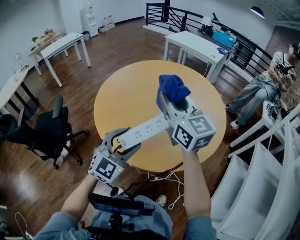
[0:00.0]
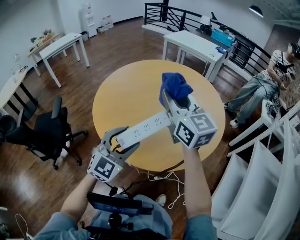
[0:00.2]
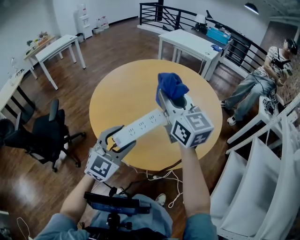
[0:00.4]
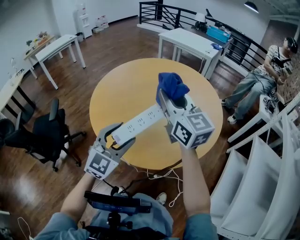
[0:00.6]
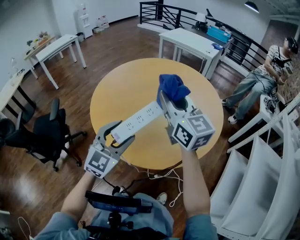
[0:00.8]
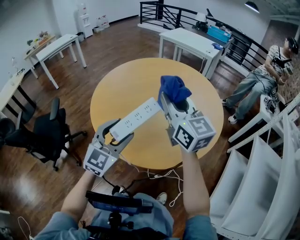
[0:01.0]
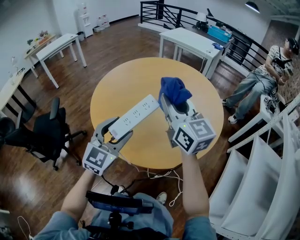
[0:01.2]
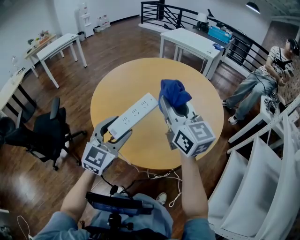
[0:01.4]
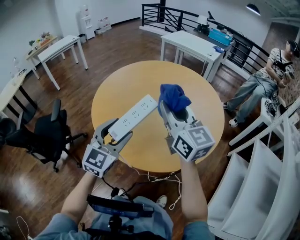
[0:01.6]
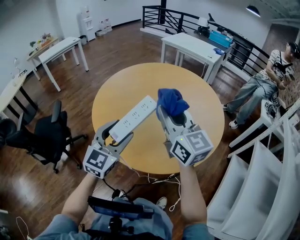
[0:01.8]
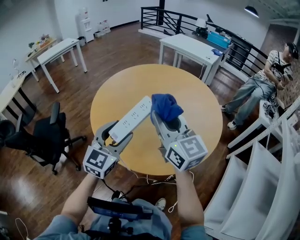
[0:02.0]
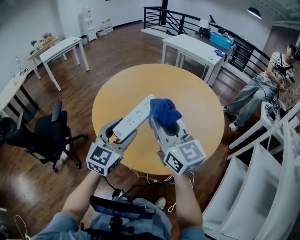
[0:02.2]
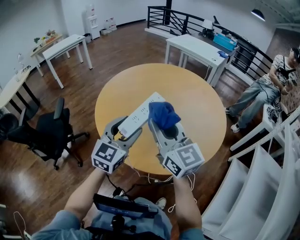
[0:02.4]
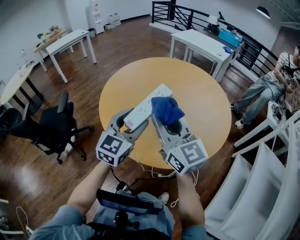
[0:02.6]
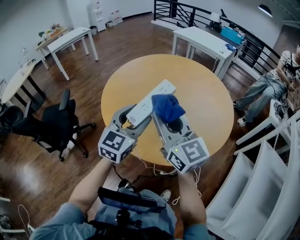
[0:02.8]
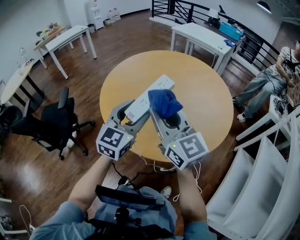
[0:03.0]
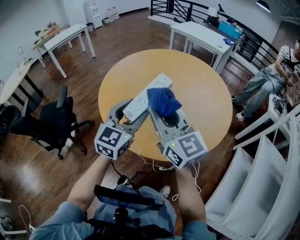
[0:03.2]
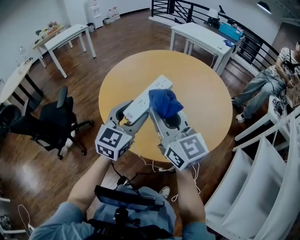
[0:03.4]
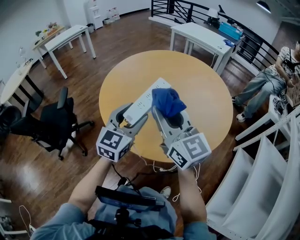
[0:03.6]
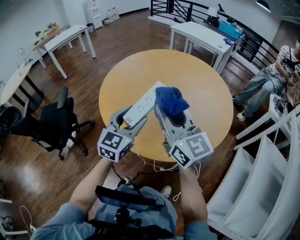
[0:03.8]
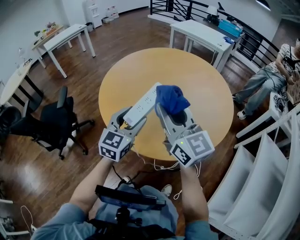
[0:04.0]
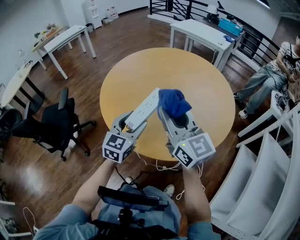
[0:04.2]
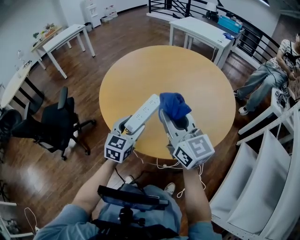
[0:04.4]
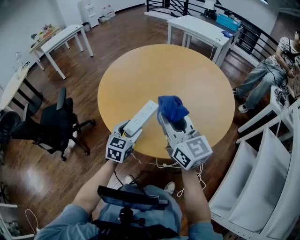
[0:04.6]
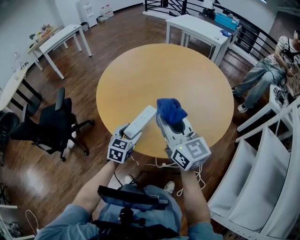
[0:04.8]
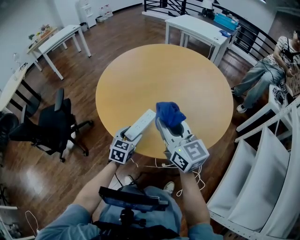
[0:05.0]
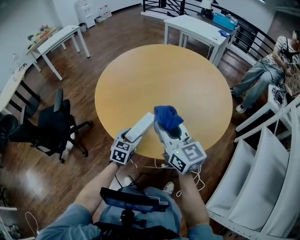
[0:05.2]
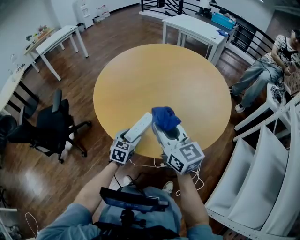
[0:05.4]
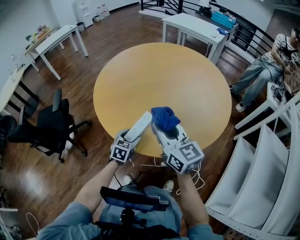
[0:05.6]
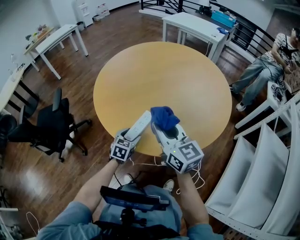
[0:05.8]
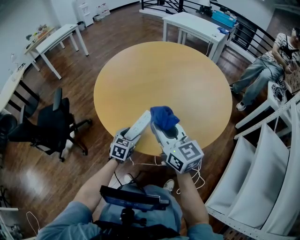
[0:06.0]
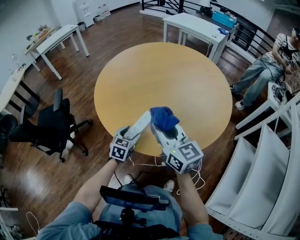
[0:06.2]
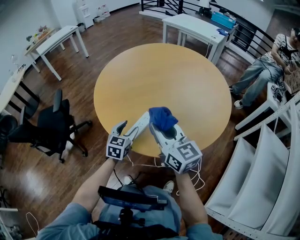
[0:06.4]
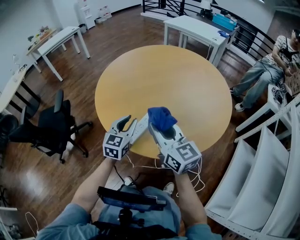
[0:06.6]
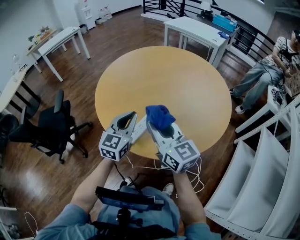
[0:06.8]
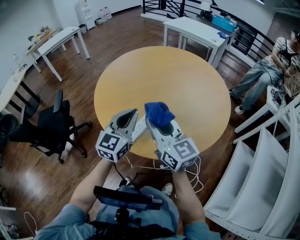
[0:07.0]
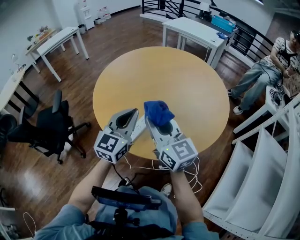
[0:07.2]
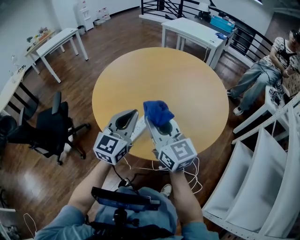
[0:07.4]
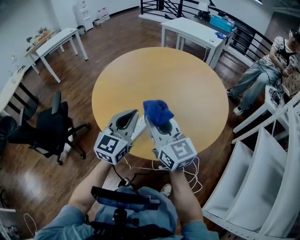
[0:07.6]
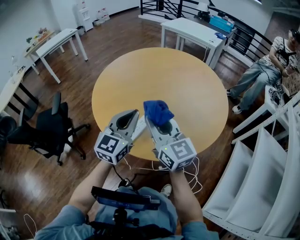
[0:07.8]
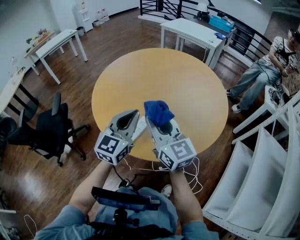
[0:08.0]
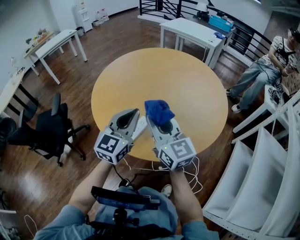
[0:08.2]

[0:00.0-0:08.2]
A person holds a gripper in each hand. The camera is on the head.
0:00.0 to 0:01.6: There are only small adjustments of the grippers.
0:01.6 to 0:03.2: The right gripper is displaced to the left and backward by about 10 cm.
0:03.2 to 0:05.0: The right gripper shifts roughly 10 cm downward. Meanwhile the left gripper moves downward, approximately 25 cm, and rotates roughly 30 degrees.
0:05.0 to 0:06.6: The left gripper moves upward, about 10 cm, and closes.
0:06.6 to 0:08.2: The left gripper moves upward and to the right, approximately 15 cm, and closes its fingers.

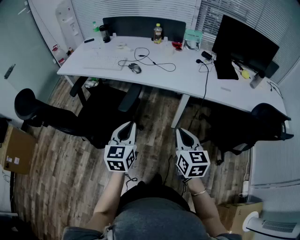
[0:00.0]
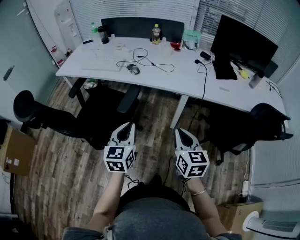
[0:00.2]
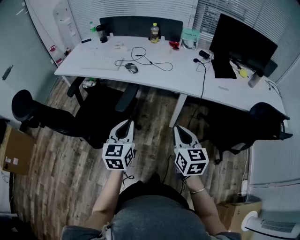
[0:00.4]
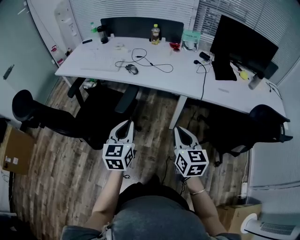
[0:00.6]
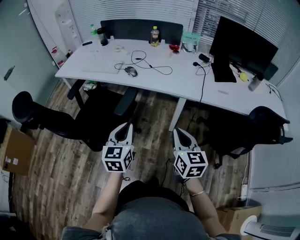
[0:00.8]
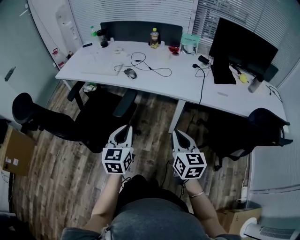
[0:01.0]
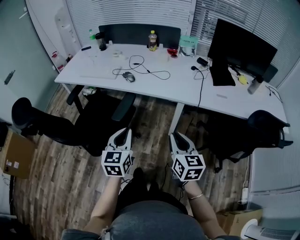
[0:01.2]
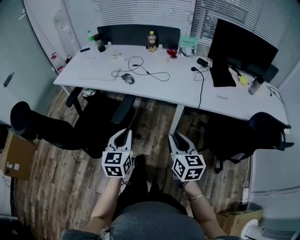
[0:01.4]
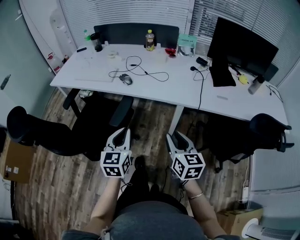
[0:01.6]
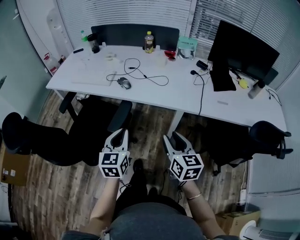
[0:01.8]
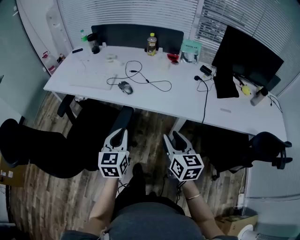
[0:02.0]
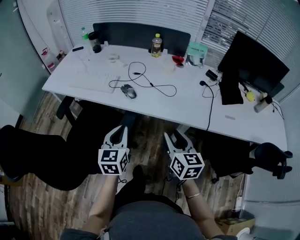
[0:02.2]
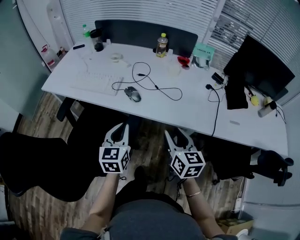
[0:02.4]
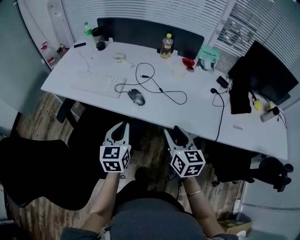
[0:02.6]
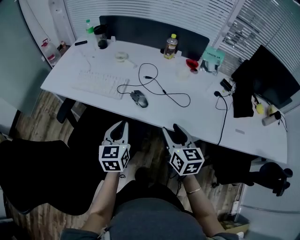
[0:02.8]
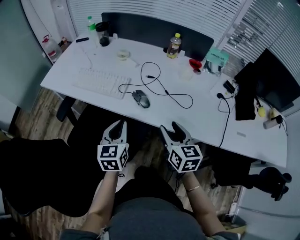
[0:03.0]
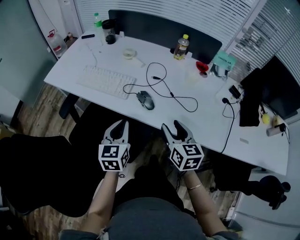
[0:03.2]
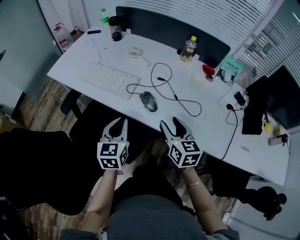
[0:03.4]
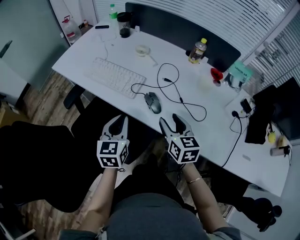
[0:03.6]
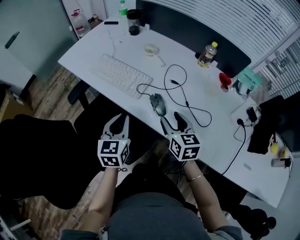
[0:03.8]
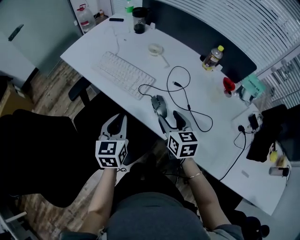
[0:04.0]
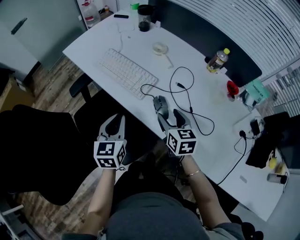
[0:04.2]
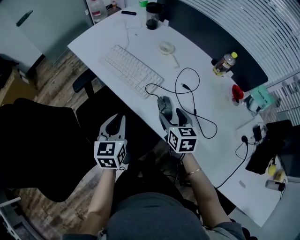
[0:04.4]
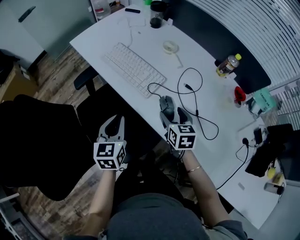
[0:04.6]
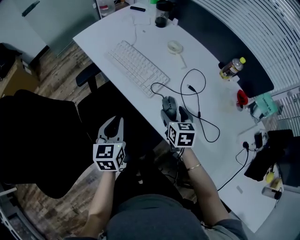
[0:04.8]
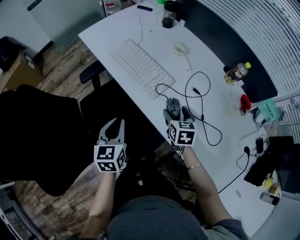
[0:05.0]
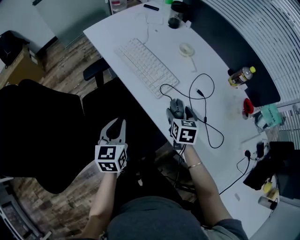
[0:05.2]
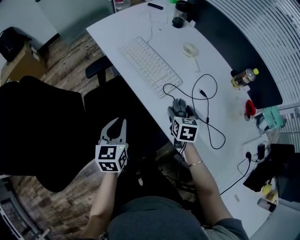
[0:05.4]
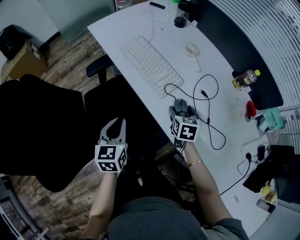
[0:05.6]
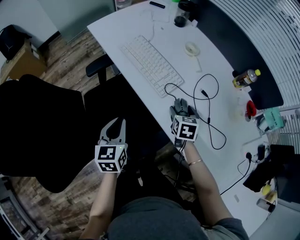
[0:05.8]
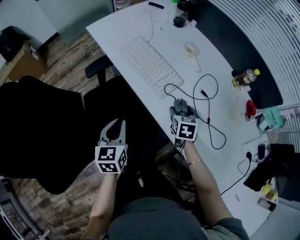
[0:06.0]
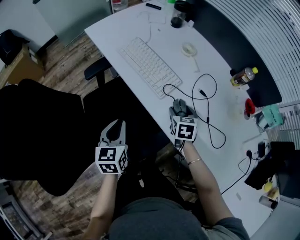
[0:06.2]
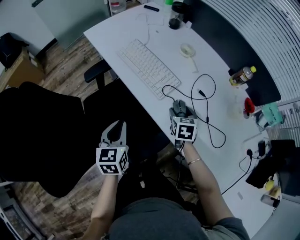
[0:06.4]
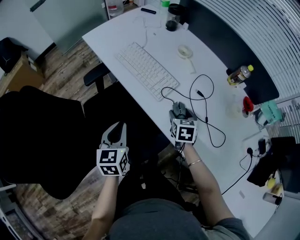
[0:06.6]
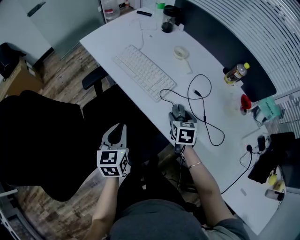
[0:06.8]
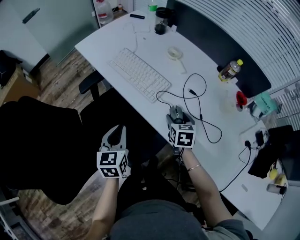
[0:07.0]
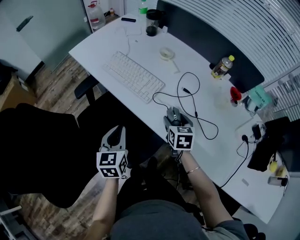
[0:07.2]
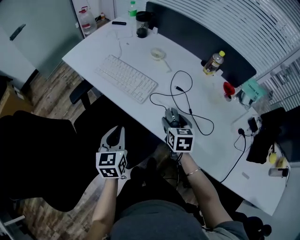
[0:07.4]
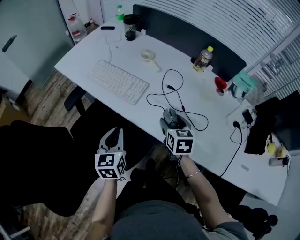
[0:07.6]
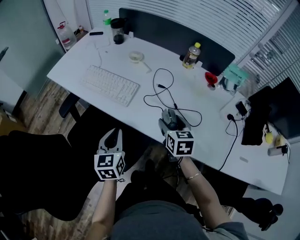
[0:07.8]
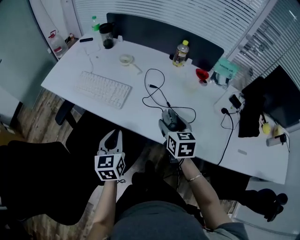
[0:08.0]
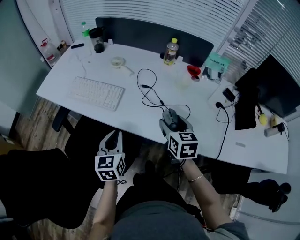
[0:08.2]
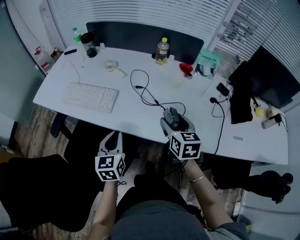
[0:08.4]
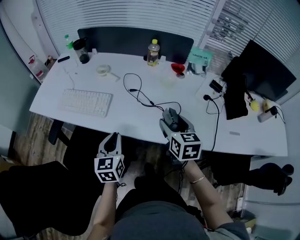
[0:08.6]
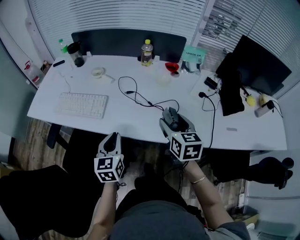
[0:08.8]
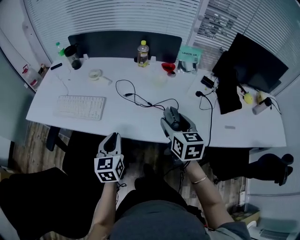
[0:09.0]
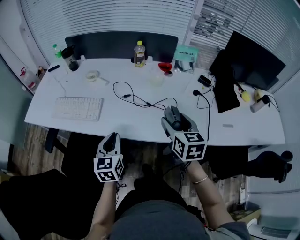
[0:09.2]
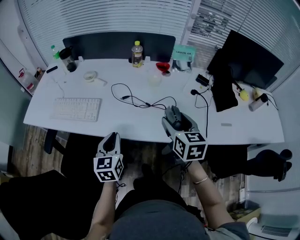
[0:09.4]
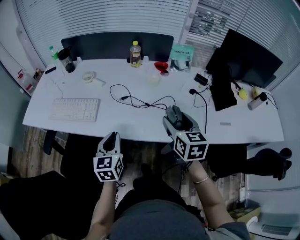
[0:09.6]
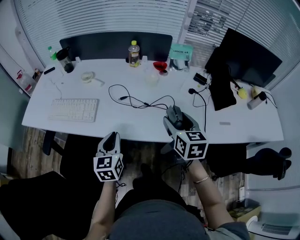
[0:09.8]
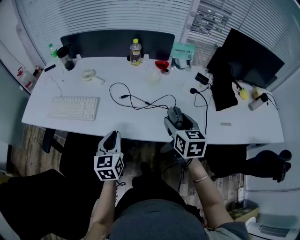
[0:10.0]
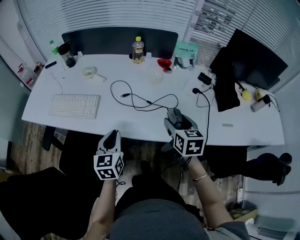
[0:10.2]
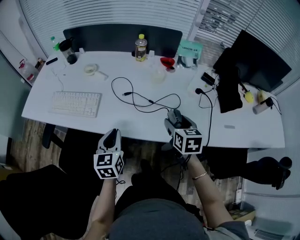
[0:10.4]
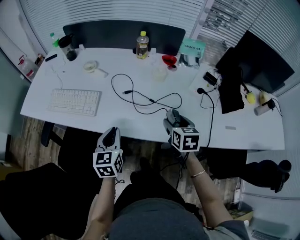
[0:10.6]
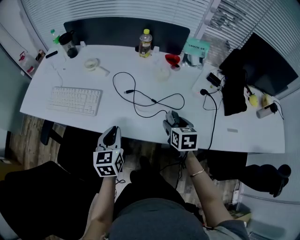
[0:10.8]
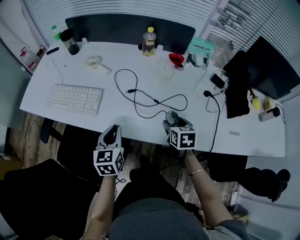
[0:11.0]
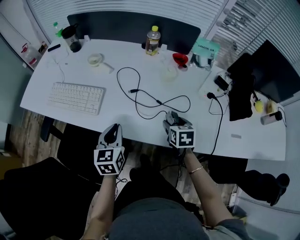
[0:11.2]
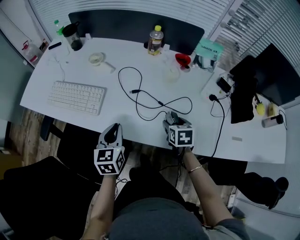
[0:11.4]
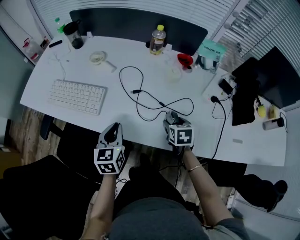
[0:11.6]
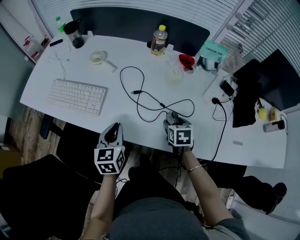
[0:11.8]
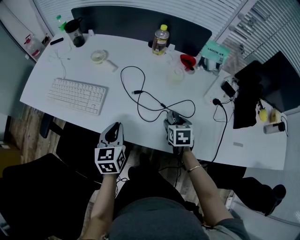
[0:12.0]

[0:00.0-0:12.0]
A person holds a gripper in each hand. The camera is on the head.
0:00.0 to 0:01.6: The grippers both shift forward by approximately 5 cm. The right gripper opens up.
0:01.6 to 0:03.0: Both grippers travel together forward and to the left, roughly 30 cm.
0:03.0 to 0:04.4: The left gripper shifts approximately 10 cm to the left and forward, and rotates some 20 degrees. The right gripper heads forward and downward, covering roughly 20 cm, and rotates roughly 30 degrees.
0:04.4 to 0:06.0: The right gripper heads downward and forward, covering some 10 cm, while the left gripper heads to the left, covering roughly 5 cm.
0:06.0 to 0:07.6: The left gripper goes approximately 5 cm to the right; the right gripper heads backward and upward, covering about 10 cm.
0:07.6 to 0:09.0: The right gripper heads to the right, upward and backward, covering some 20 cm, and changes its angle by about 20 degrees, while the left gripper goes some 10 cm to the right, and changes its angle by roughly 20 degrees.
0:09.0 to 0:10.4: The right gripper is displaced downward by some 5 cm.
0:10.4 to 0:12.0: The right gripper travels downward and forward by about 15 cm, while the left gripper travels forward by about 5 cm.

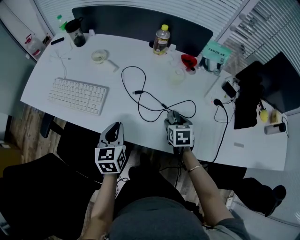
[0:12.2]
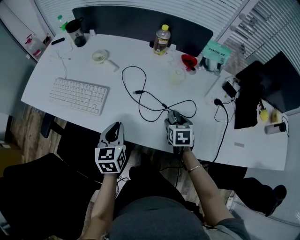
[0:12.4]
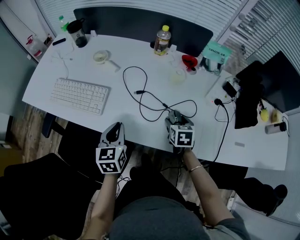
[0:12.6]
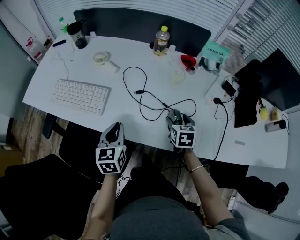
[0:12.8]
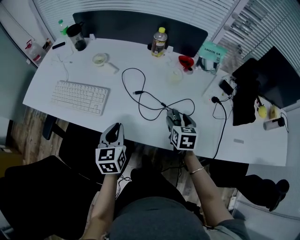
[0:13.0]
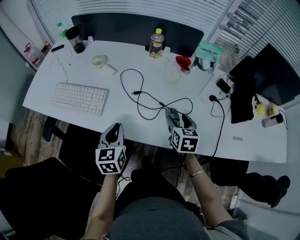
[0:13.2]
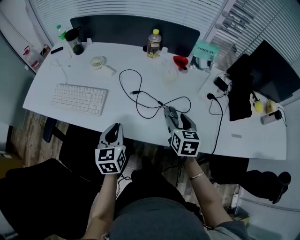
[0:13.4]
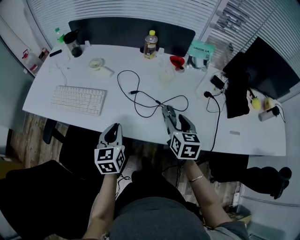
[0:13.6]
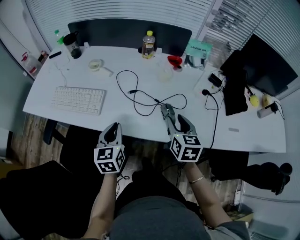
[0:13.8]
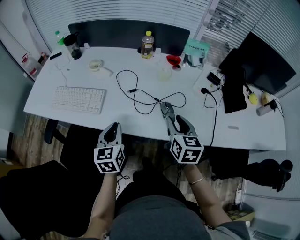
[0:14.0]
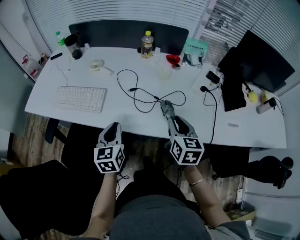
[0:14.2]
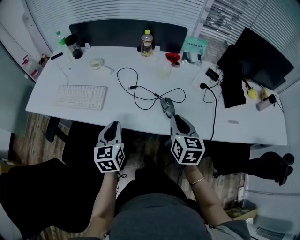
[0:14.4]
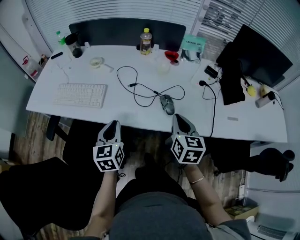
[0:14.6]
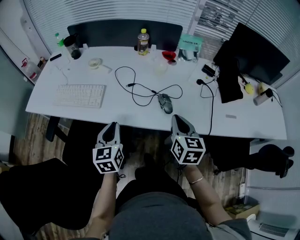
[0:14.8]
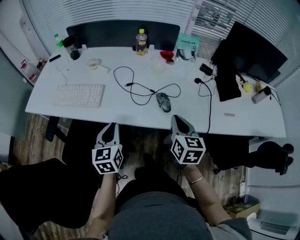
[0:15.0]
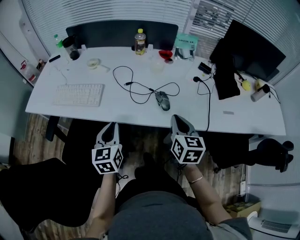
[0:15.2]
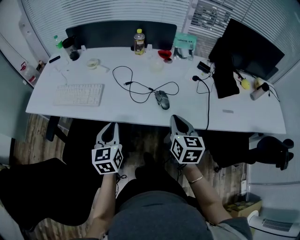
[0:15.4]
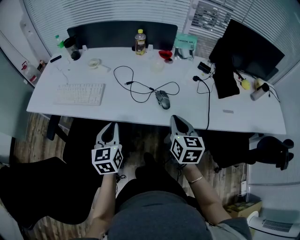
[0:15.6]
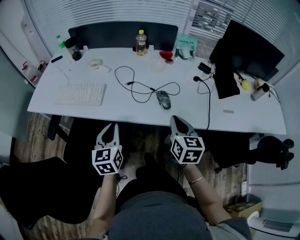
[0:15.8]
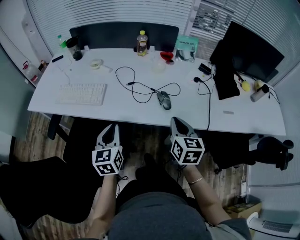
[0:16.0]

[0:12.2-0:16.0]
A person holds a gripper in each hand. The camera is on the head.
0:12.2 to 0:13.4: The right gripper moves upward, approximately 10 cm, and rotates some 20 degrees.
0:13.4 to 0:14.8: The right gripper travels backward and upward by about 15 cm, and closes up, while the left gripper shifts approximately 5 cm backward.
0:14.8 to 0:16.0: The grippers stay close to where they were, moving slightly.
